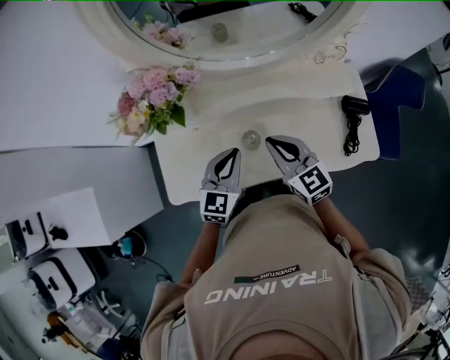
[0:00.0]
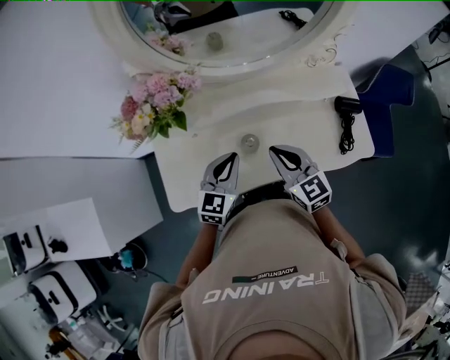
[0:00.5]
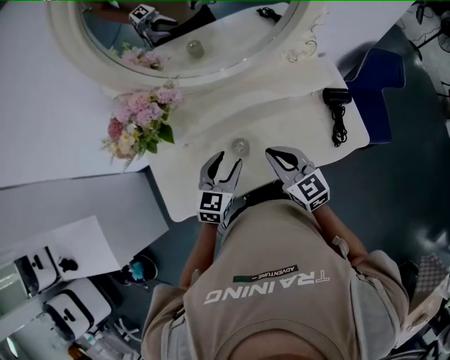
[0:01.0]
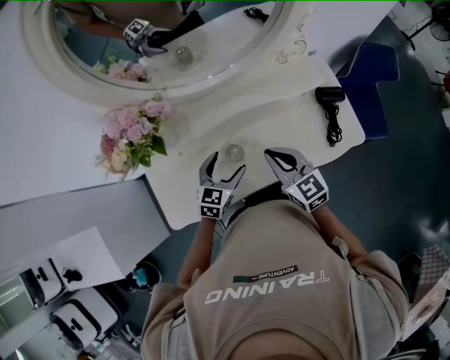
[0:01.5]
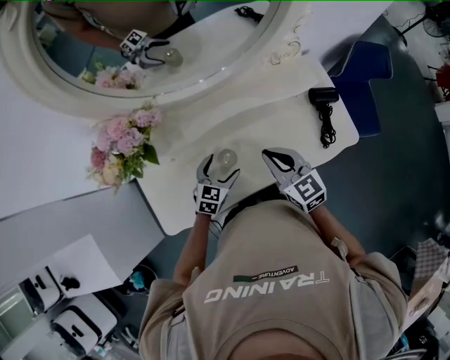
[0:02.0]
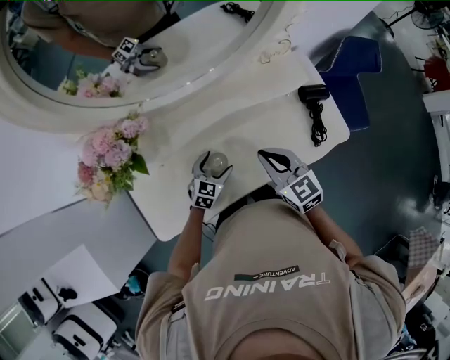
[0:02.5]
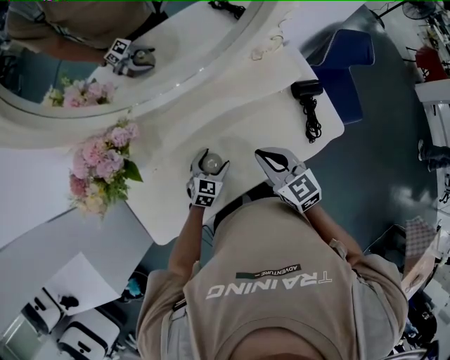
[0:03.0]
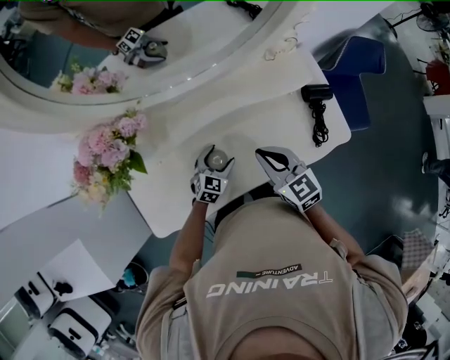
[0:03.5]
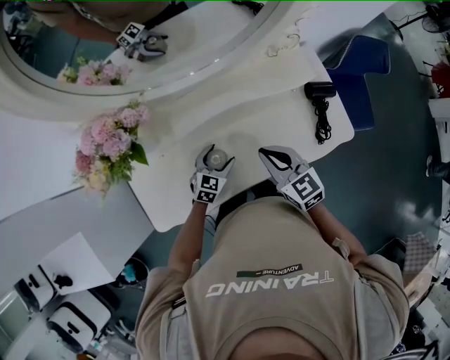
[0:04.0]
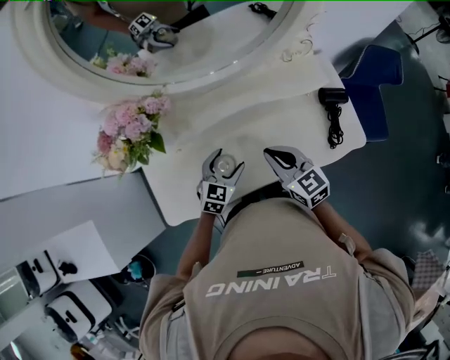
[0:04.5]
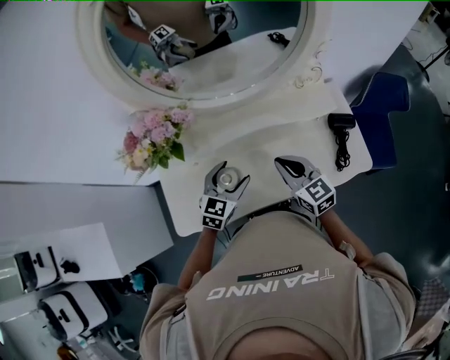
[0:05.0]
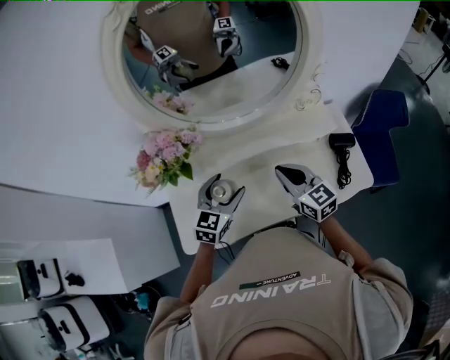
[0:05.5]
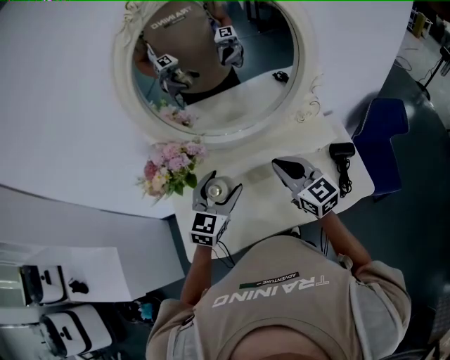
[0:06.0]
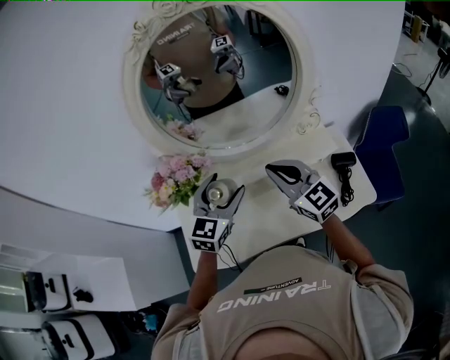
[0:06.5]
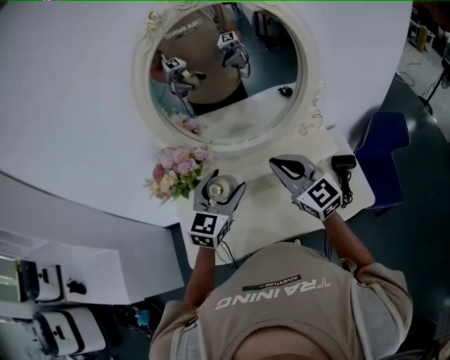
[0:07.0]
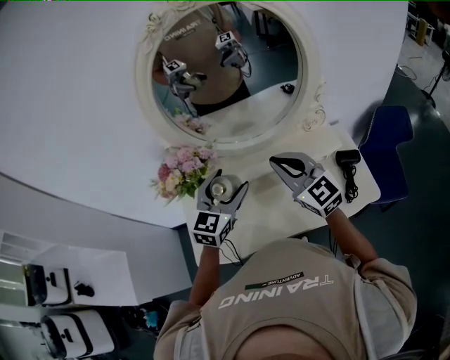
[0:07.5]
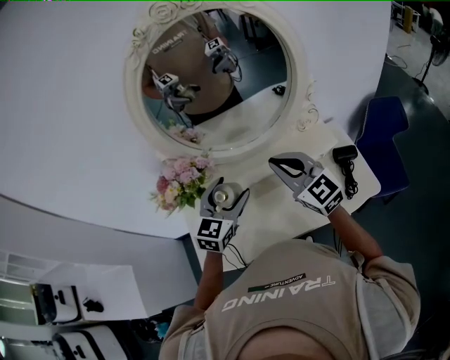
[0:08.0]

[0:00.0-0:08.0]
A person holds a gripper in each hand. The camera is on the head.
0:00.0 to 0:02.0: The right gripper goes roughly 5 cm to the right, while the left gripper moves downward, about 15 cm, changes its angle by about 20 degrees, and opens up.
0:04.0 to 0:06.0: The right gripper moves upward and forward, approximately 15 cm, and changes its angle by approximately 20 degrees, while the left gripper shifts roughly 30 cm upward, and rotates roughly 30 degrees.
0:06.0 to 0:08.0: The right gripper goes roughly 5 cm upward.

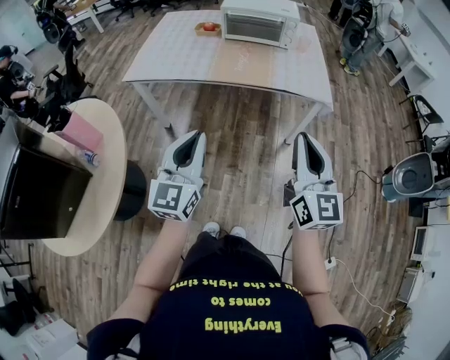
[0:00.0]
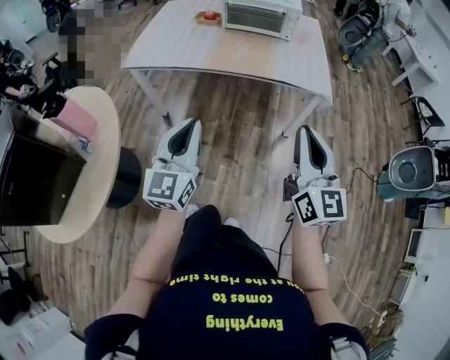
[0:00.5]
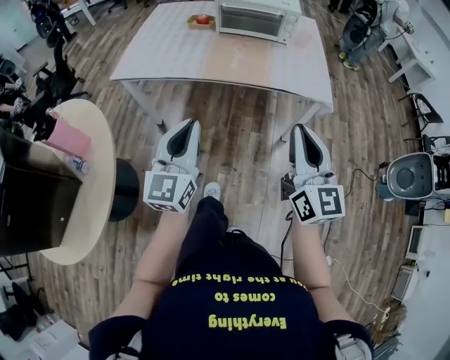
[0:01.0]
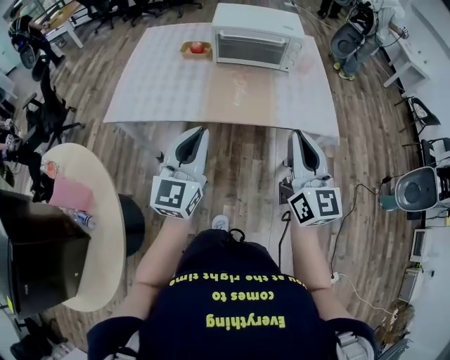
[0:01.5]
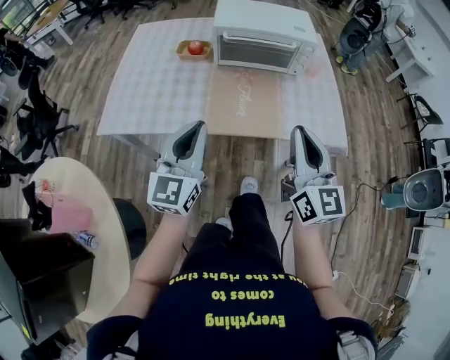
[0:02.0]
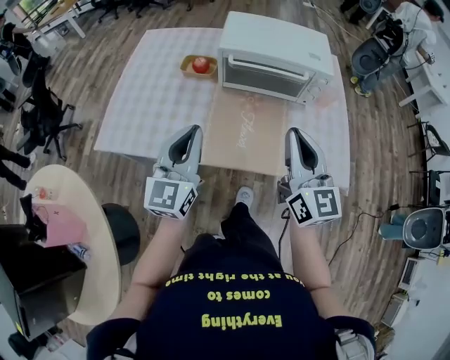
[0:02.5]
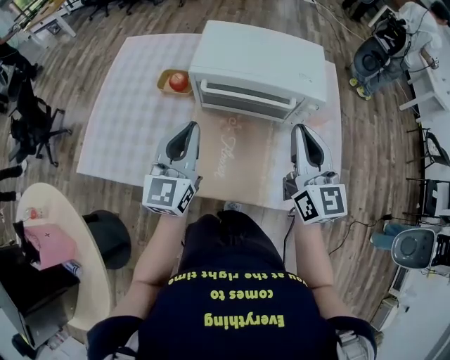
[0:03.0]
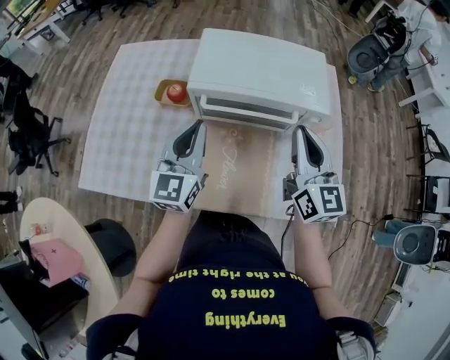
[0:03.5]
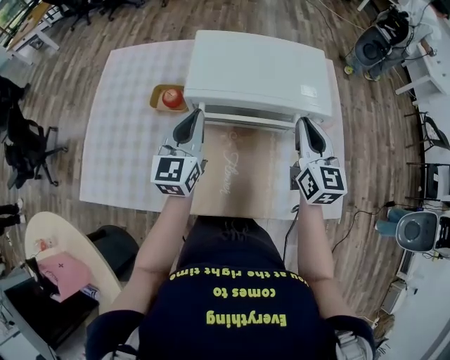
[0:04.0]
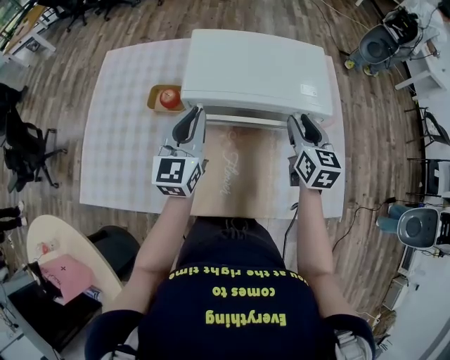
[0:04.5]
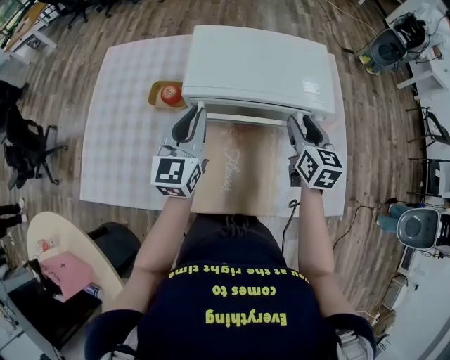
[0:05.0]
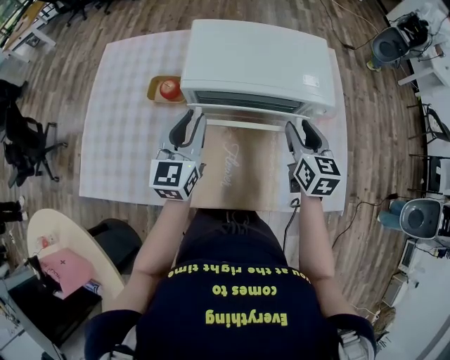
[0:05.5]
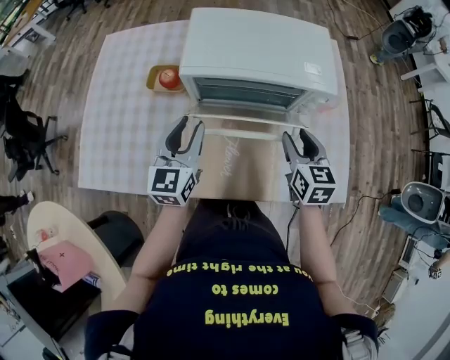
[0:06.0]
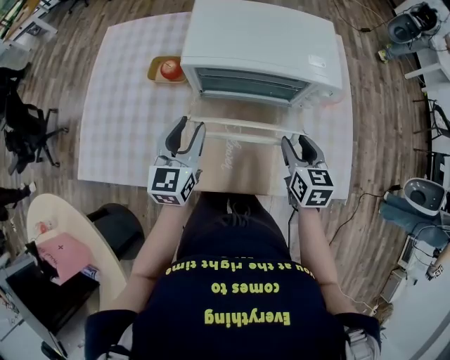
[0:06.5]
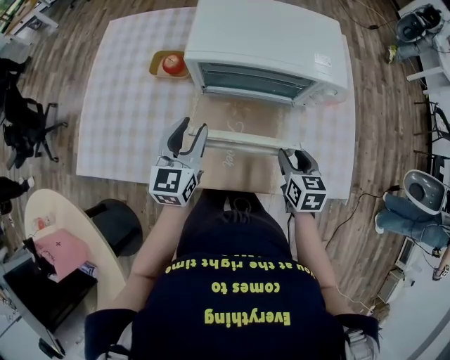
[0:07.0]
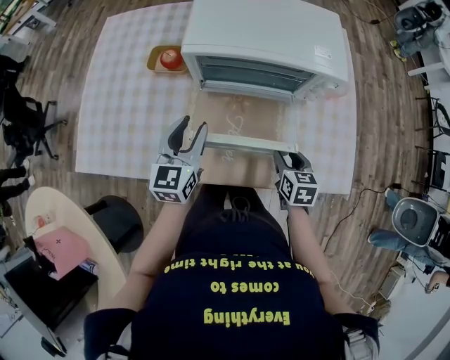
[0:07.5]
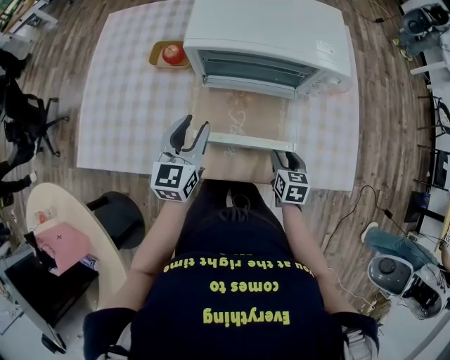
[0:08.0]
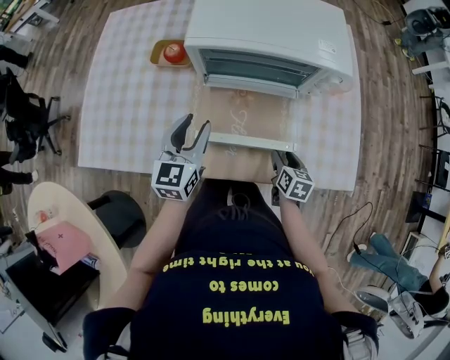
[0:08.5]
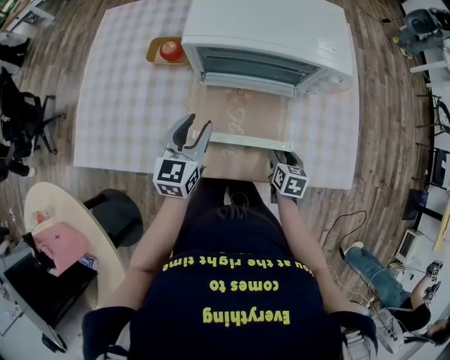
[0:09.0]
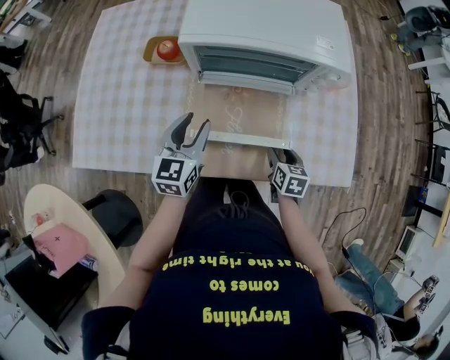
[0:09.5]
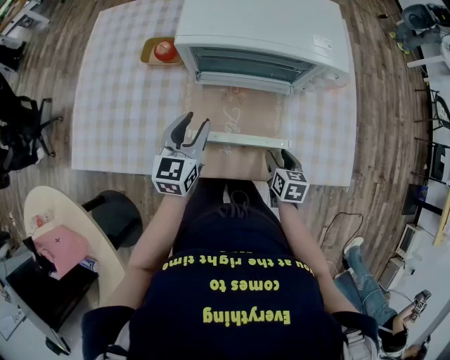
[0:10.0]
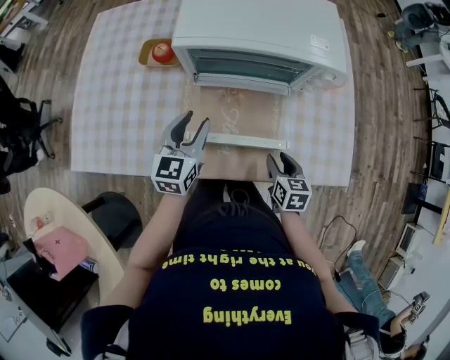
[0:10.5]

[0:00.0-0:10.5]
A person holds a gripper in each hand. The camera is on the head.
0:00.0 to 0:02.0: The two grippers go about 35 cm forward.
0:02.0 to 0:04.0: Both grippers are carried forward, some 40 cm.
0:04.0 to 0:06.5: The left gripper is displaced backward and downward by approximately 10 cm, and opens its fingers. Meanwhile the right gripper heads downward and backward, covering about 15 cm, changes its angle by roughly 20 degrees, and opens up.
0:06.5 to 0:08.5: The right gripper travels downward and backward by approximately 20 cm, and rotates roughly 20 degrees.
0:08.5 to 0:10.5: The grippers move only a little.

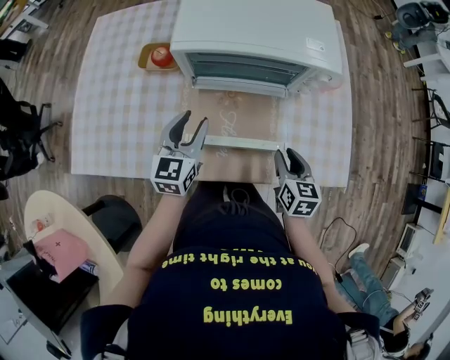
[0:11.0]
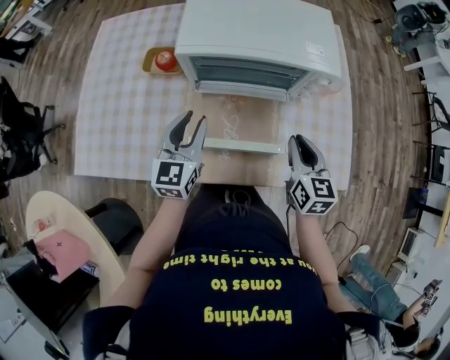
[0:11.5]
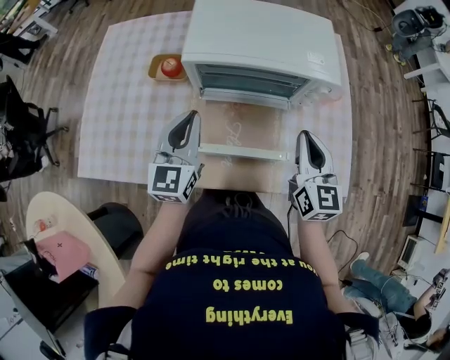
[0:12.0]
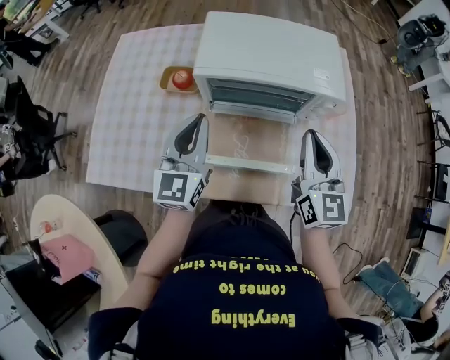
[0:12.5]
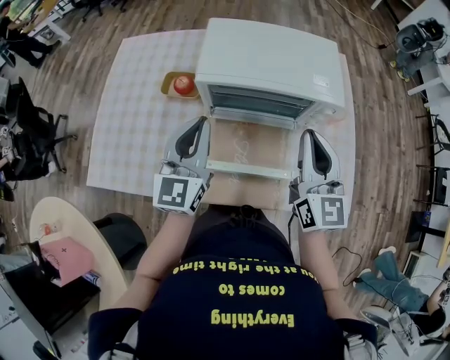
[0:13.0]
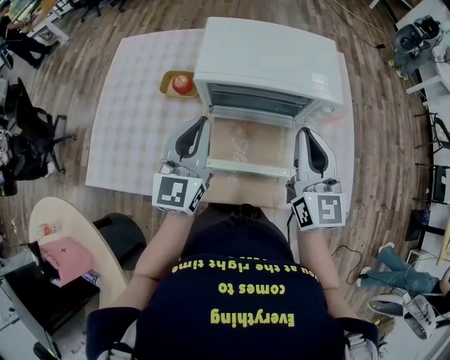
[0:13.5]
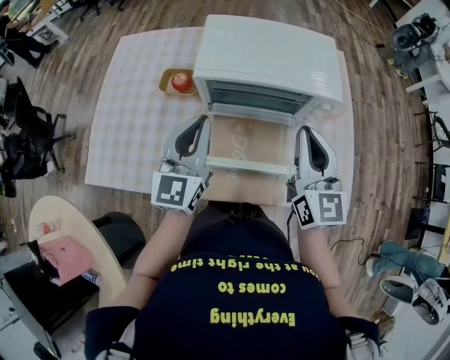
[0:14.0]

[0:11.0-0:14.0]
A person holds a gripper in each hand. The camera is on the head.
0:11.0 to 0:12.5: The right gripper moves upward, approximately 20 cm, points its fingers about 30 degrees further upward, and closes its fingers, while the left gripper is displaced upward by approximately 15 cm, and closes.
0:12.5 to 0:14.0: There are only small adjustments of the grippers.

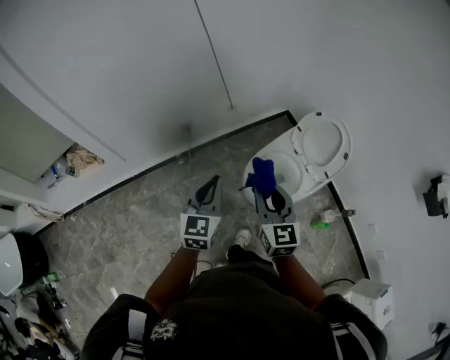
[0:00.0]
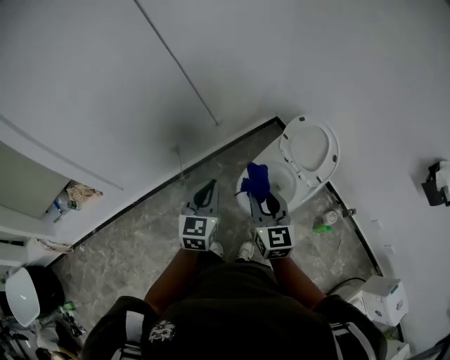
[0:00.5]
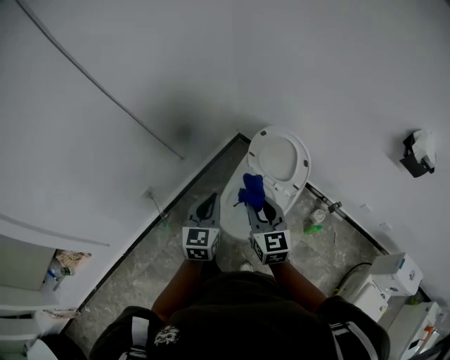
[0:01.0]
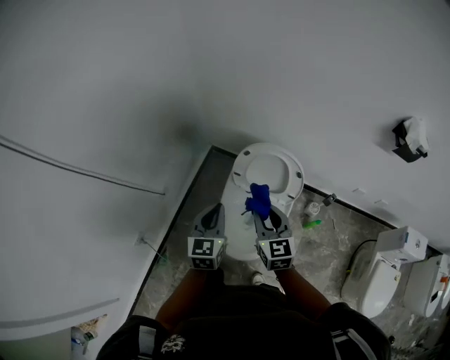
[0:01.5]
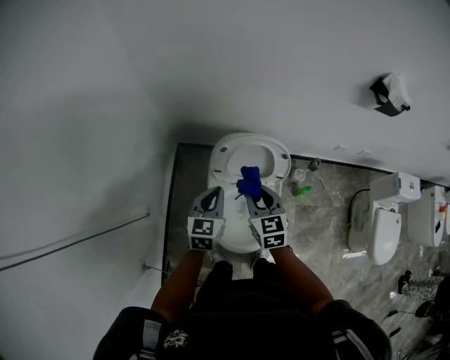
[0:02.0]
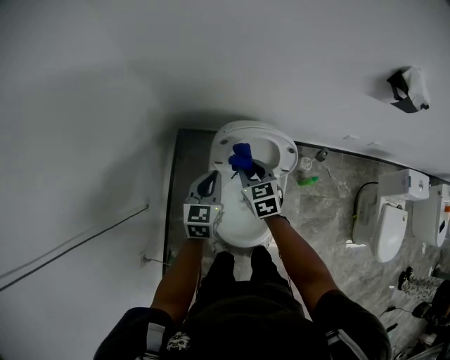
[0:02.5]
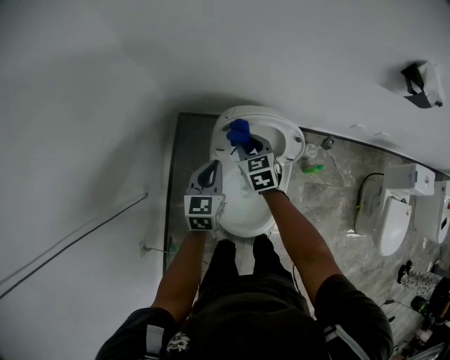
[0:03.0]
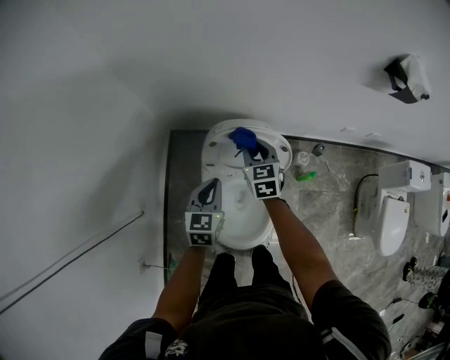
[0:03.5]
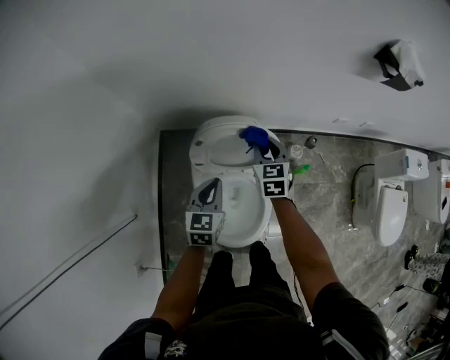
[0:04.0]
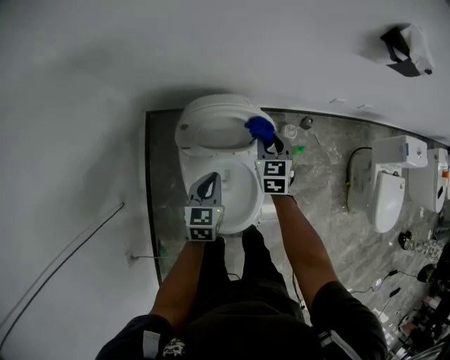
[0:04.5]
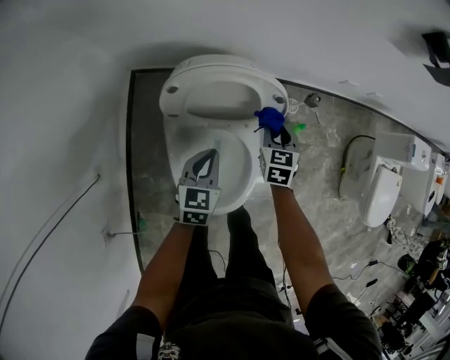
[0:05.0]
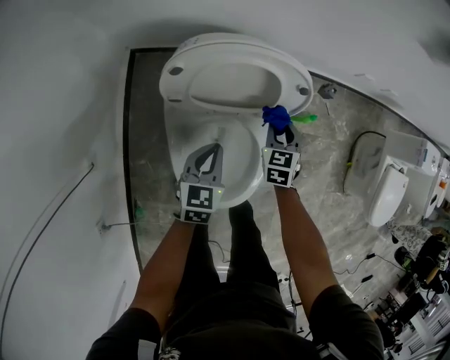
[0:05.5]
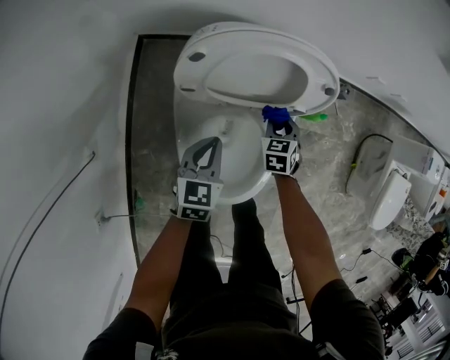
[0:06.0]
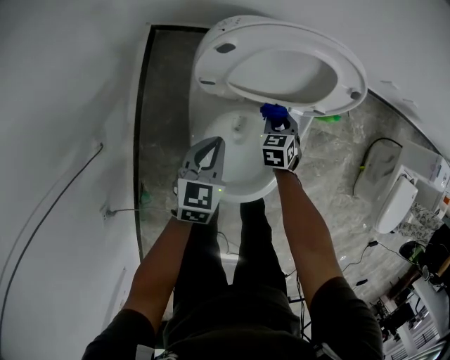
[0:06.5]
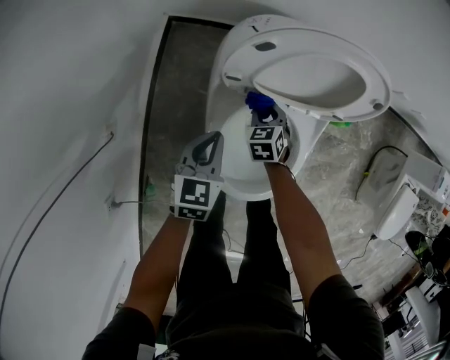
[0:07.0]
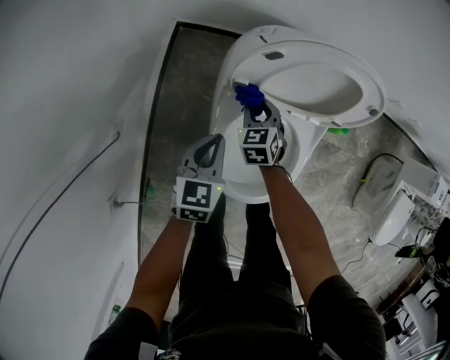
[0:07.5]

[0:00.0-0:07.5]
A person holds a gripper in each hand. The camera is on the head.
0:00.0 to 0:02.0: The right gripper ends up about 40 cm from where it was, and rotates approximately 50 degrees, while the left gripper ends up roughly 50 cm from where it was, and rotates approximately 60 degrees.
0:02.0 to 0:04.0: The left gripper shifts some 10 cm downward, to the right and forward. Meanwhile the right gripper goes approximately 20 cm forward, to the right and downward.
0:04.0 to 0:05.5: The two grippers go some 20 cm downward.
0:05.5 to 0:07.5: The left gripper moves to the left, about 15 cm. The right gripper goes about 25 cm to the left.
